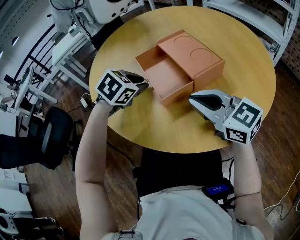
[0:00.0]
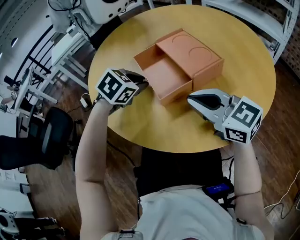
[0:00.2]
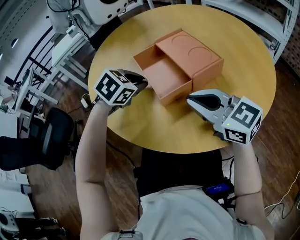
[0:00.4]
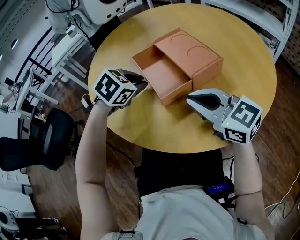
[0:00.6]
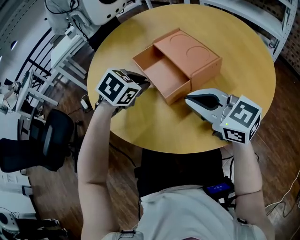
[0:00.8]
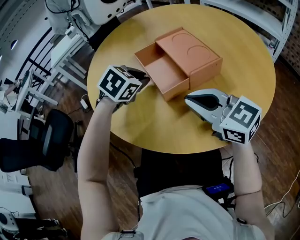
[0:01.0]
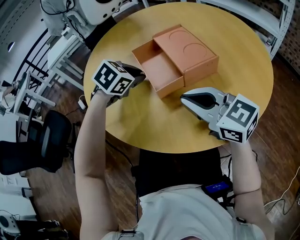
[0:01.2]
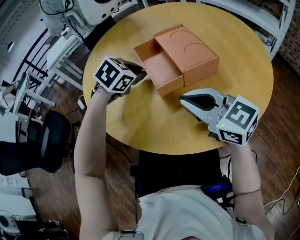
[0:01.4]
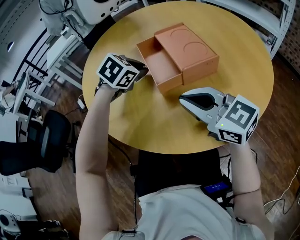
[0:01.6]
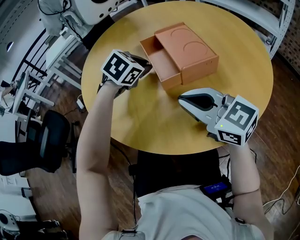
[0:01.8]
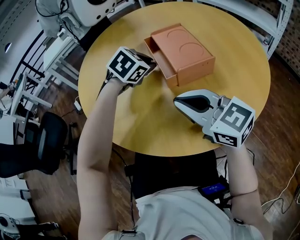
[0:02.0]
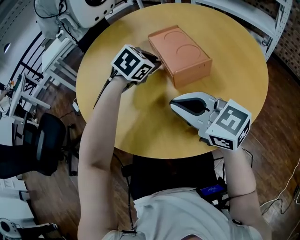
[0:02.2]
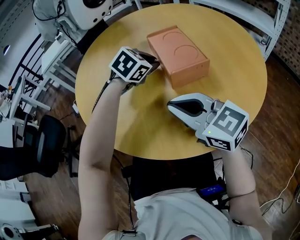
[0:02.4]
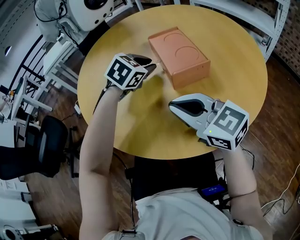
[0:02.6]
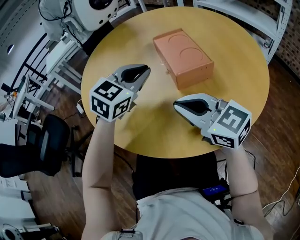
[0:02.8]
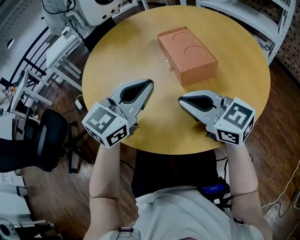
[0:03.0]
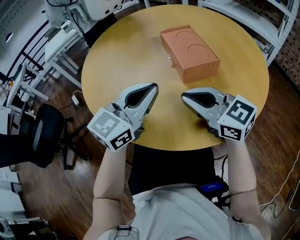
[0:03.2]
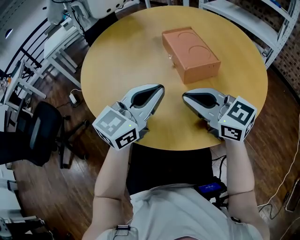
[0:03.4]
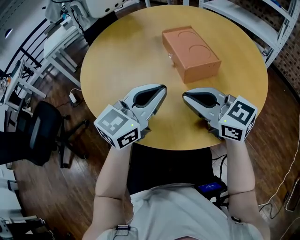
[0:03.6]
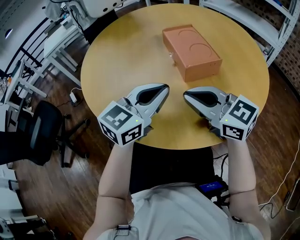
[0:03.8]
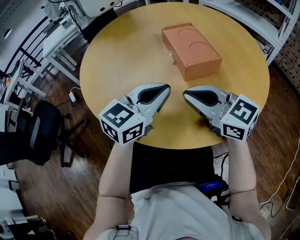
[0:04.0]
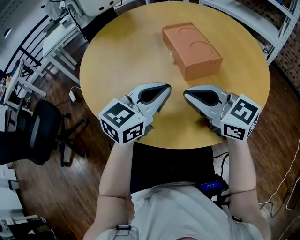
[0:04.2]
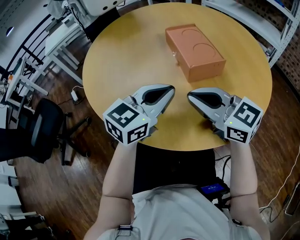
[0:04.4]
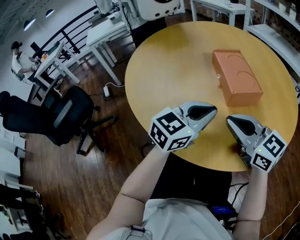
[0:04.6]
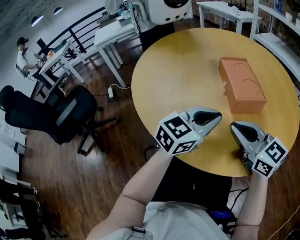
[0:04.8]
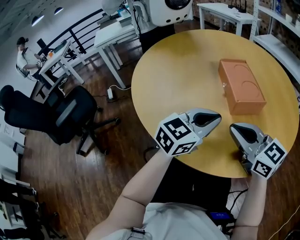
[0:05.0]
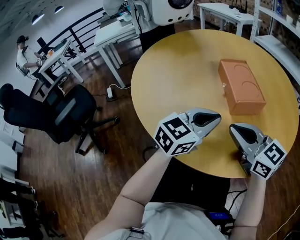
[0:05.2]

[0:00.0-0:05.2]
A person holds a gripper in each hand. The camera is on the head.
0:00.0 to 0:01.8: The left gripper shifts about 10 cm to the right and forward.
0:01.8 to 0:03.4: The left gripper heads backward and upward, covering some 20 cm, and tilts its fingers about 50 degrees upward.

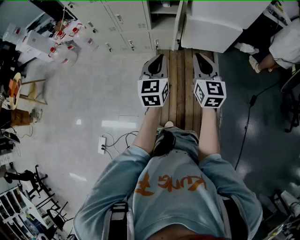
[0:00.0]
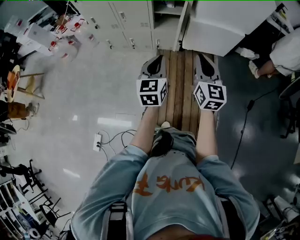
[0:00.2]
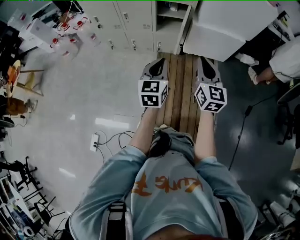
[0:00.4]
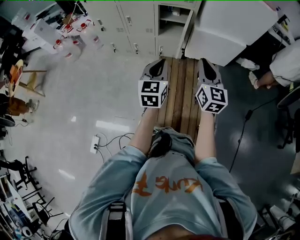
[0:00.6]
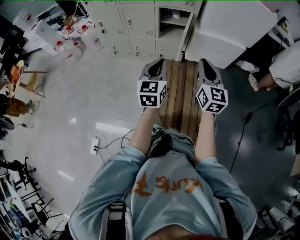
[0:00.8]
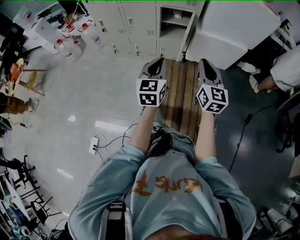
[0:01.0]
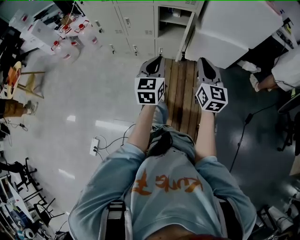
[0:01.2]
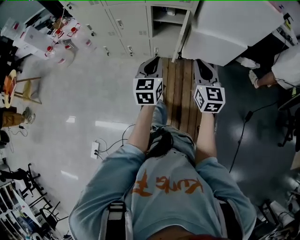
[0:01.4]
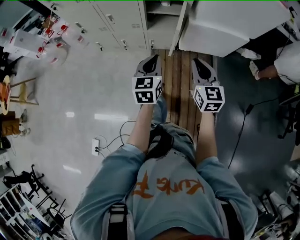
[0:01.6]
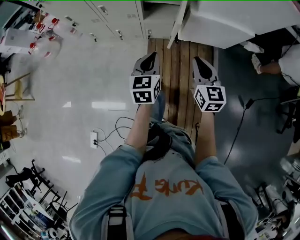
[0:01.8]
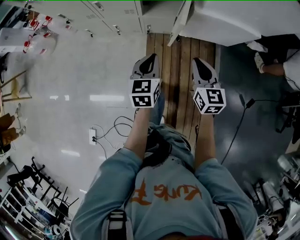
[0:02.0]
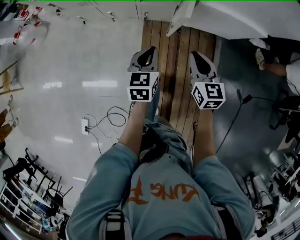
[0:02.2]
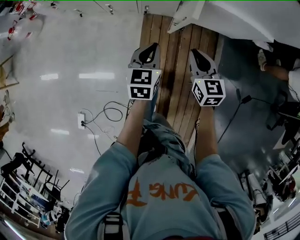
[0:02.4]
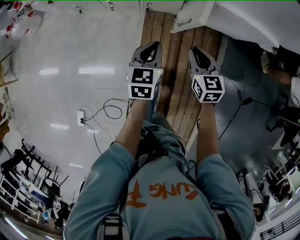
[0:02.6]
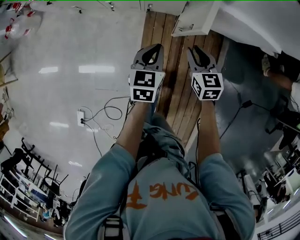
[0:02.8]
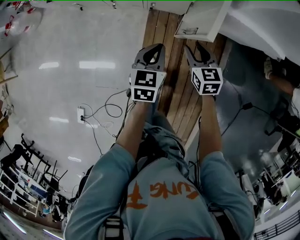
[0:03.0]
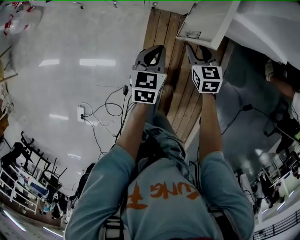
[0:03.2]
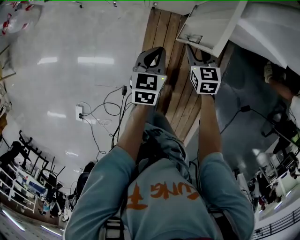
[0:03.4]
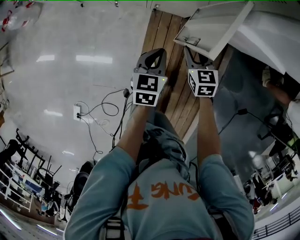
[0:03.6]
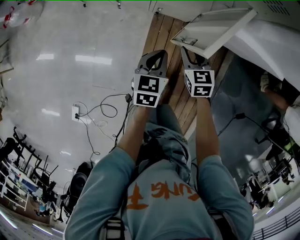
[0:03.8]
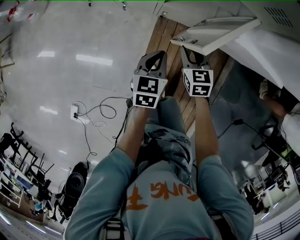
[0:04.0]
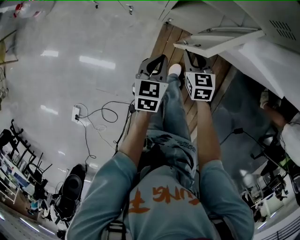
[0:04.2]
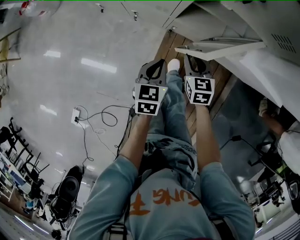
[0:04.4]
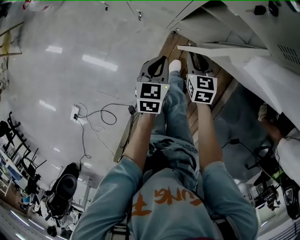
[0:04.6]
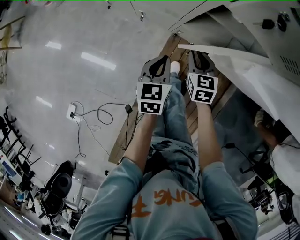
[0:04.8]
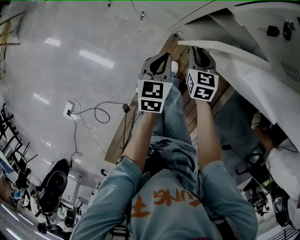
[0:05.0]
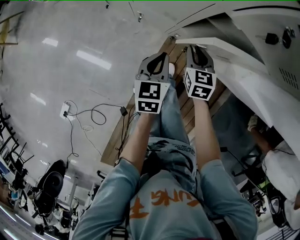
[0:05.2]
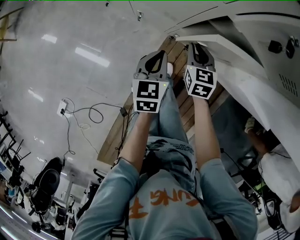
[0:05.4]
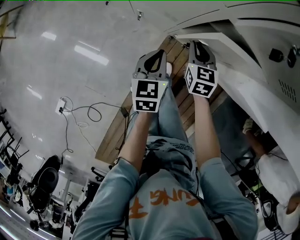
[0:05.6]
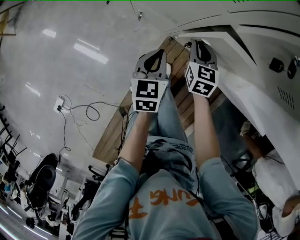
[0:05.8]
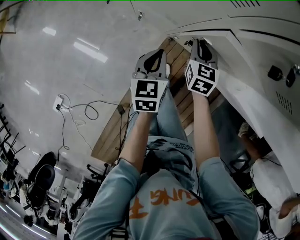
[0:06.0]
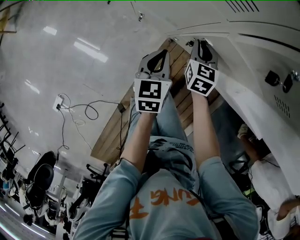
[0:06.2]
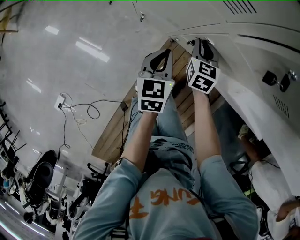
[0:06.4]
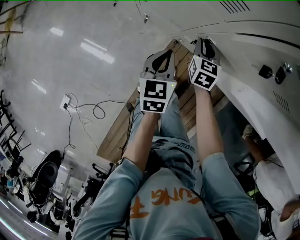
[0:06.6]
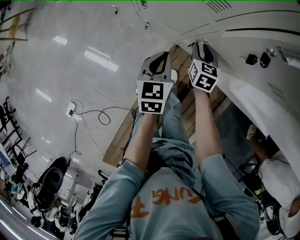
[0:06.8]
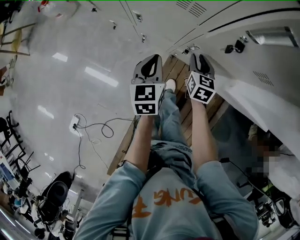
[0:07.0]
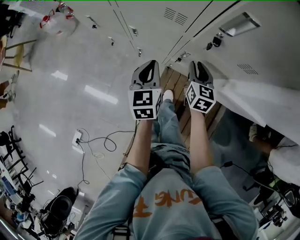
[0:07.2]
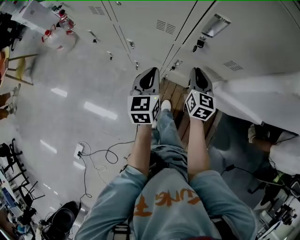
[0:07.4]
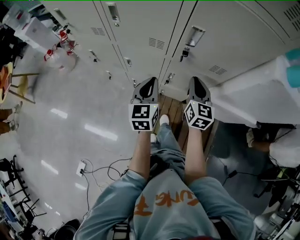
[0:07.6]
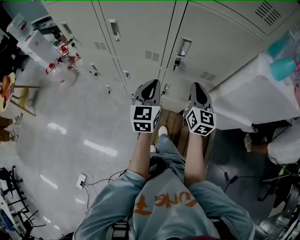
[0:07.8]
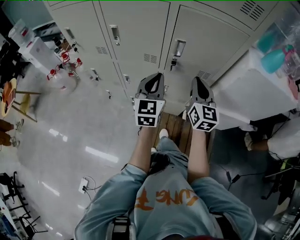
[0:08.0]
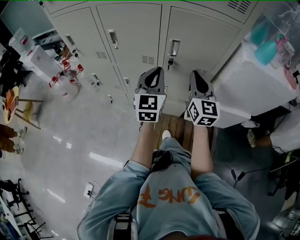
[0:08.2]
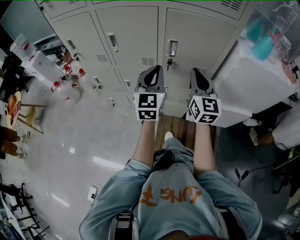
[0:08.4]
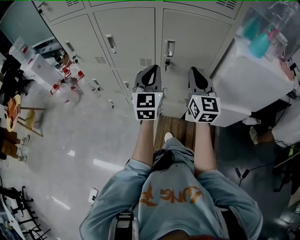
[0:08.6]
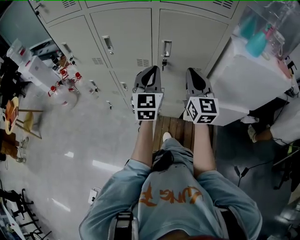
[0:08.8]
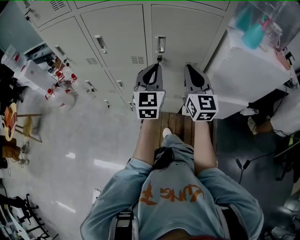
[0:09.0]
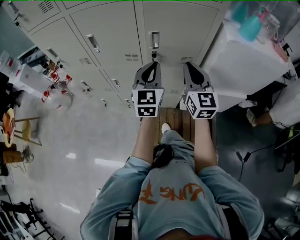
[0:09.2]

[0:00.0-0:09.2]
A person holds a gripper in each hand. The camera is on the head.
0:00.0 to 0:01.6: The two grippers go some 15 cm forward and downward.
0:01.6 to 0:03.0: The grippers both shift downward and forward by roughly 30 cm. The right gripper rotates approximately 30 degrees, and opens up.
0:03.0 to 0:04.6: The left gripper goes some 15 cm to the left and forward. The right gripper shifts some 20 cm forward and to the left.
0:04.6 to 0:06.2: The two grippers go roughly 10 cm forward.
0:06.2 to 0:07.6: The two grippers go roughly 30 cm upward. The right gripper changes its angle by some 30 degrees; the left gripper changes its angle by about 20 degrees.
0:07.6 to 0:09.2: The left gripper goes about 20 cm upward and to the right, and swivels roughly 30 degrees. The right gripper travels upward by about 15 cm, and turns by about 20 degrees.

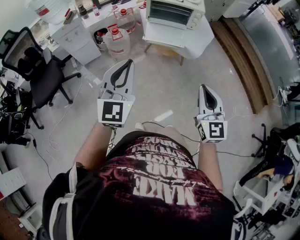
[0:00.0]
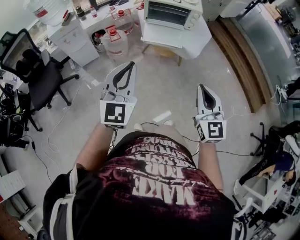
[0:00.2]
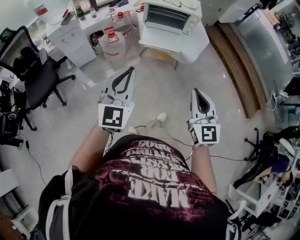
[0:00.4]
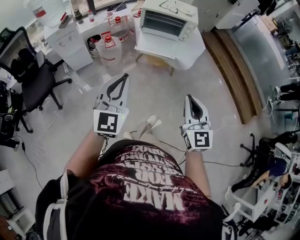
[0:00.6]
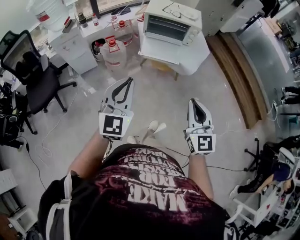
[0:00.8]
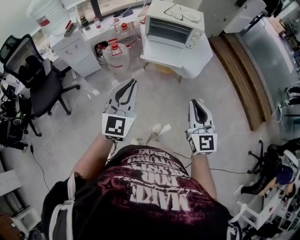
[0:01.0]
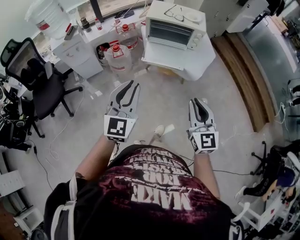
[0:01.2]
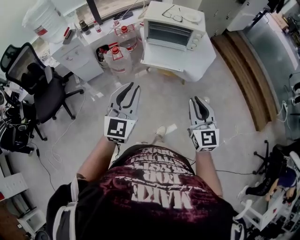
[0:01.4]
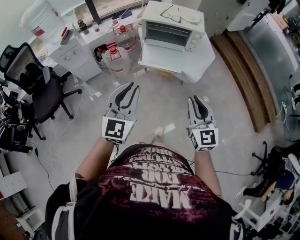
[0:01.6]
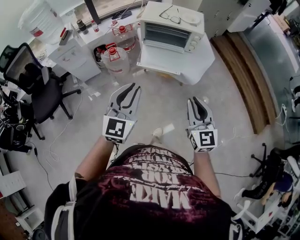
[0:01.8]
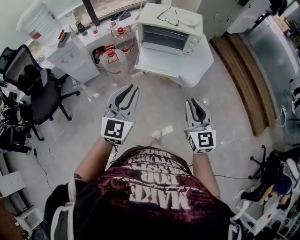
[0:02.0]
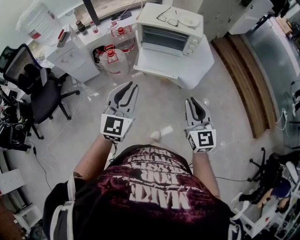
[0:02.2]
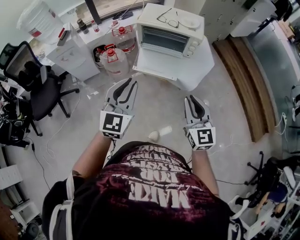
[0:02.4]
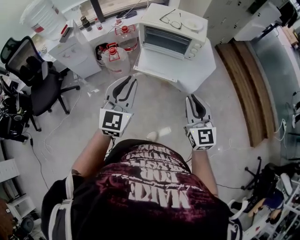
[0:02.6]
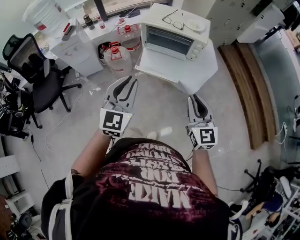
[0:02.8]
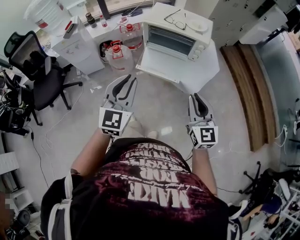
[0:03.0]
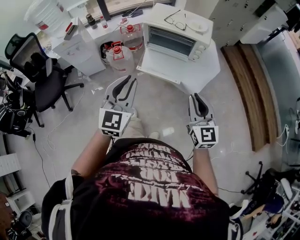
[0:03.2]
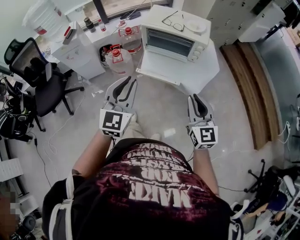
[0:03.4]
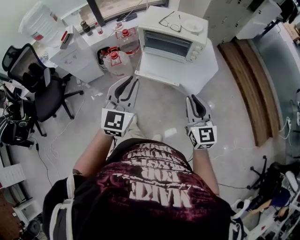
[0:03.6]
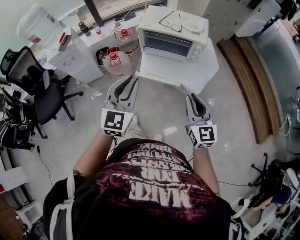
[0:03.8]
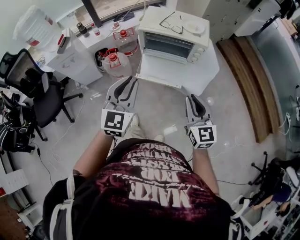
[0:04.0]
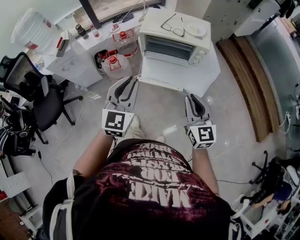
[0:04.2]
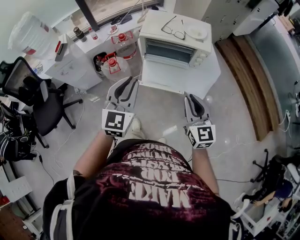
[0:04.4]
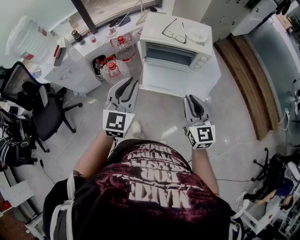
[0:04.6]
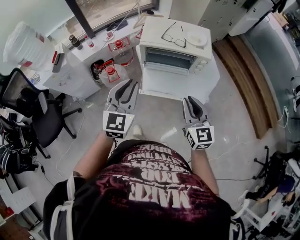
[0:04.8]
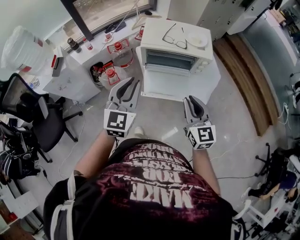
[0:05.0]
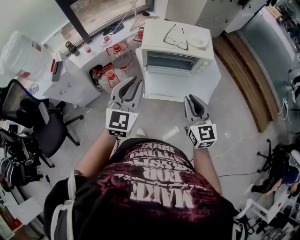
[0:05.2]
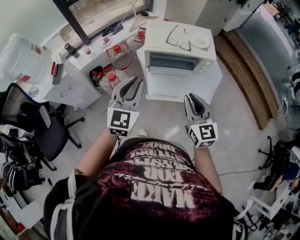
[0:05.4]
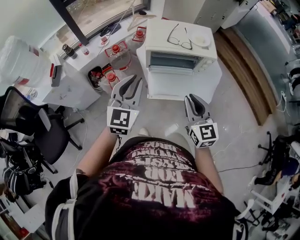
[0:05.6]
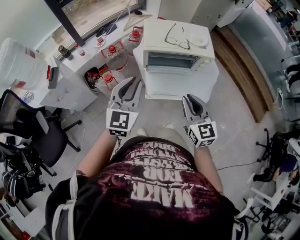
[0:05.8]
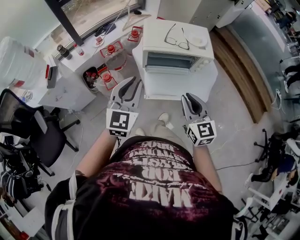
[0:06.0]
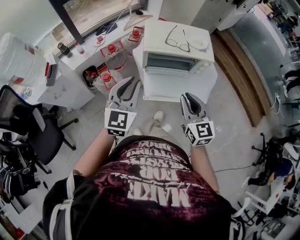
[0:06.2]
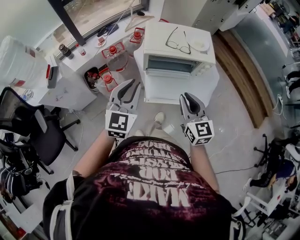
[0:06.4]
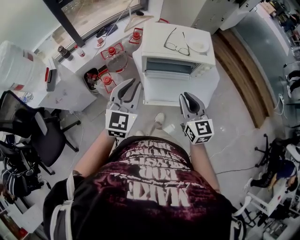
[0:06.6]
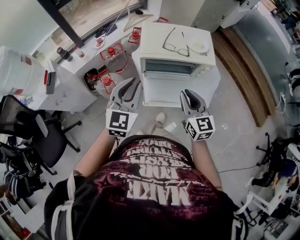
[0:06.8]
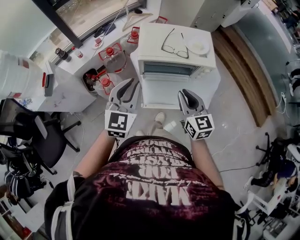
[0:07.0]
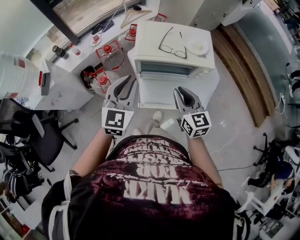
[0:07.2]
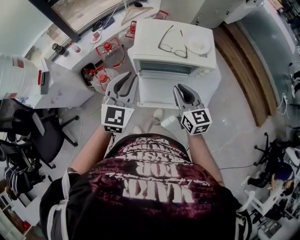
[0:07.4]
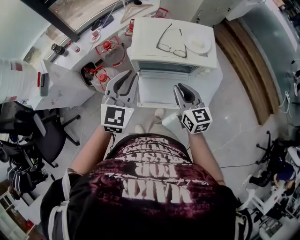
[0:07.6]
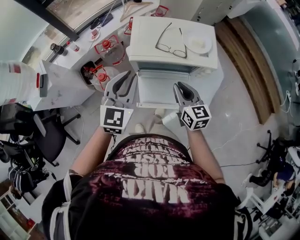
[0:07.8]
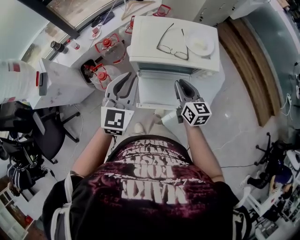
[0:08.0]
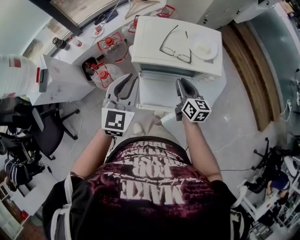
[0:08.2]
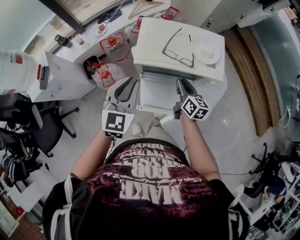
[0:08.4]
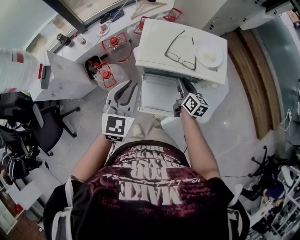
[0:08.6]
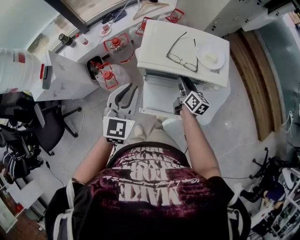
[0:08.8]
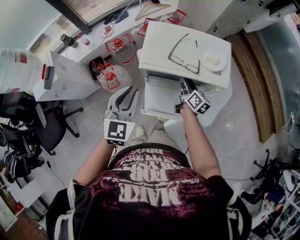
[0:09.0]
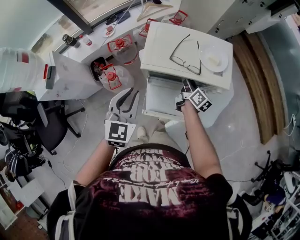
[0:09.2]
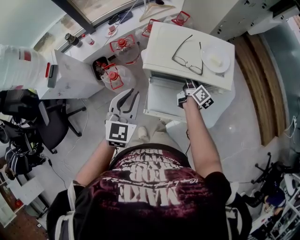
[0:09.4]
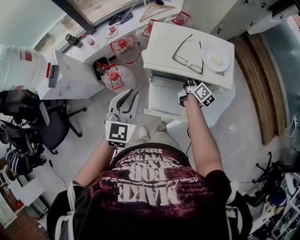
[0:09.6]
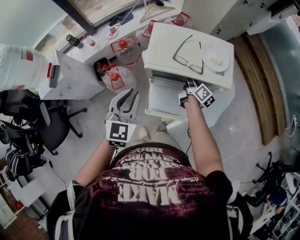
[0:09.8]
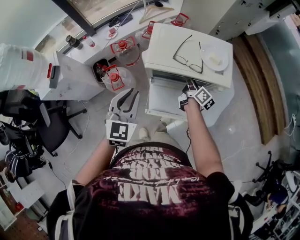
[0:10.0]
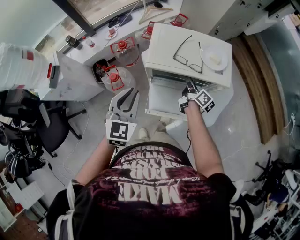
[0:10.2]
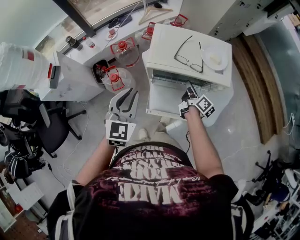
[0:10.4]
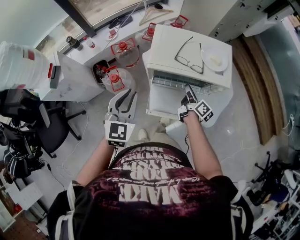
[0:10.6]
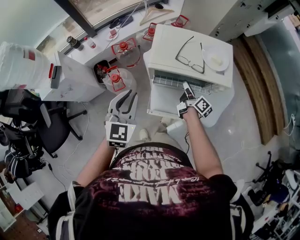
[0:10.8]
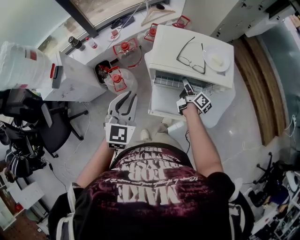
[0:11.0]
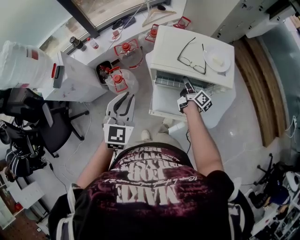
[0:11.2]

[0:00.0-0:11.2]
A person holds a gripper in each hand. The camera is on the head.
0:00.0 to 0:01.6: The left gripper shifts approximately 10 cm forward and to the right. The right gripper goes roughly 15 cm forward.
0:01.6 to 0:03.2: The left gripper is displaced forward by some 10 cm, while the right gripper goes about 10 cm forward and to the right.
0:03.2 to 0:04.8: The two grippers go approximately 15 cm forward and to the left.
0:04.8 to 0:06.4: The right gripper travels to the left and forward by about 10 cm. The left gripper shifts some 10 cm forward and to the left.
0:06.4 to 0:08.0: The left gripper shifts approximately 15 cm forward and to the right. The right gripper travels forward and downward by some 20 cm, and rotates about 20 degrees.
0:08.0 to 0:09.6: The left gripper moves approximately 5 cm; the right gripper shifts approximately 15 cm forward and downward, and turns by approximately 40 degrees.
